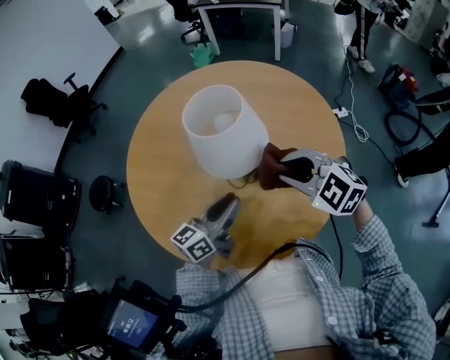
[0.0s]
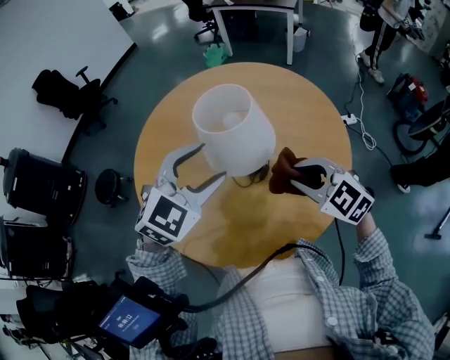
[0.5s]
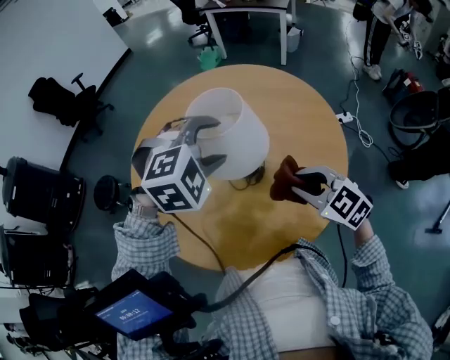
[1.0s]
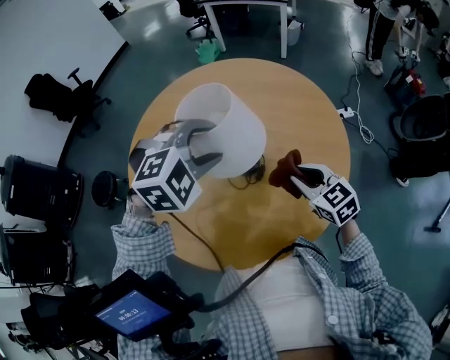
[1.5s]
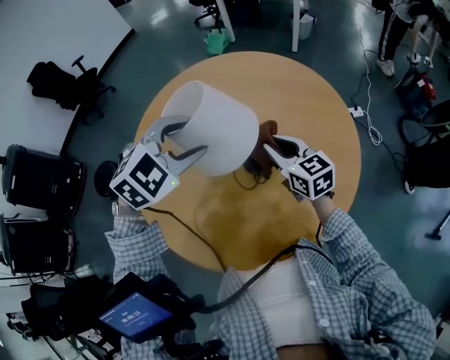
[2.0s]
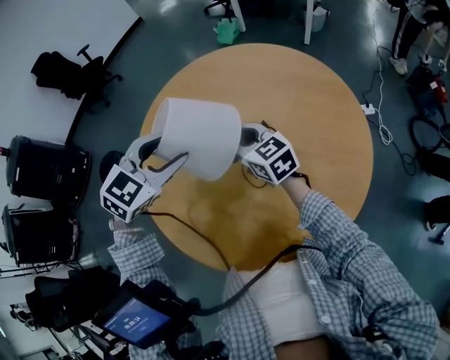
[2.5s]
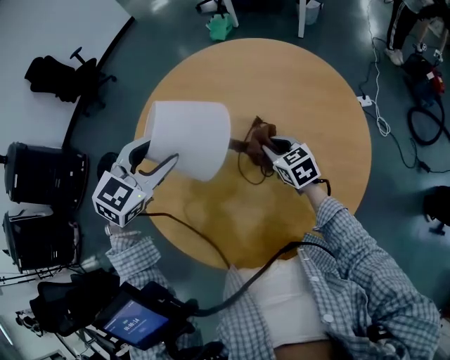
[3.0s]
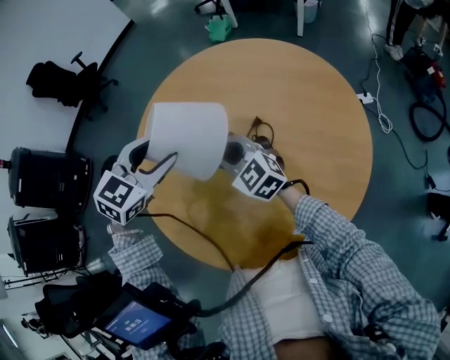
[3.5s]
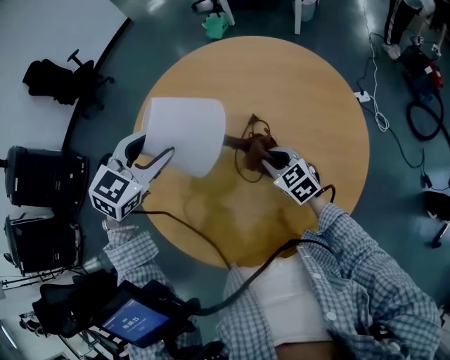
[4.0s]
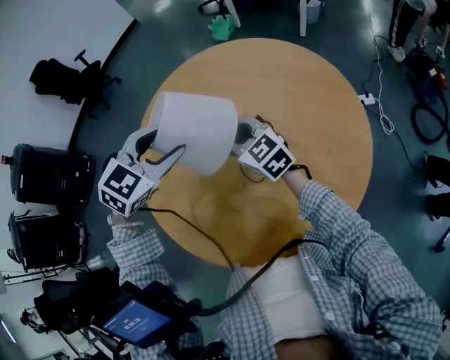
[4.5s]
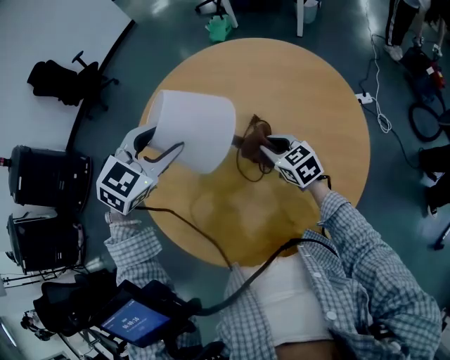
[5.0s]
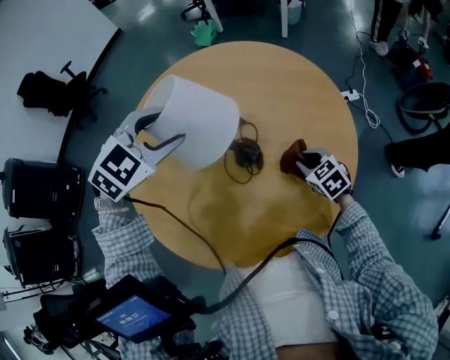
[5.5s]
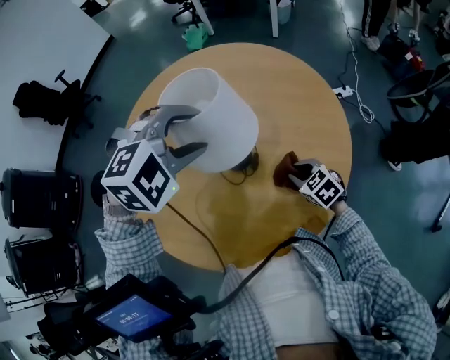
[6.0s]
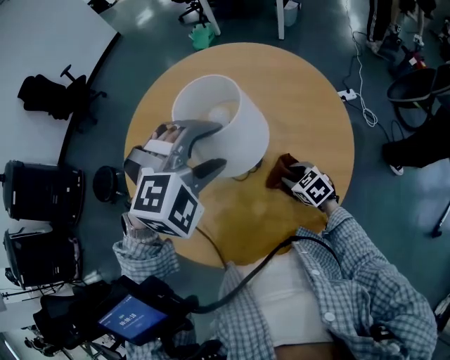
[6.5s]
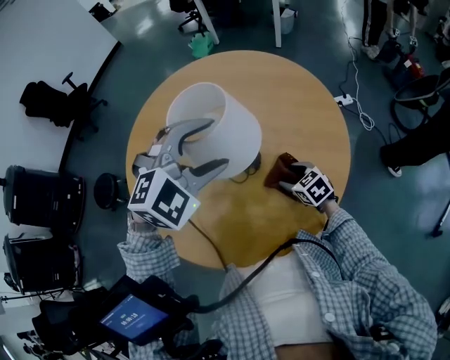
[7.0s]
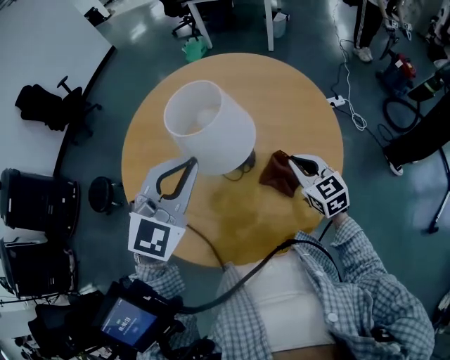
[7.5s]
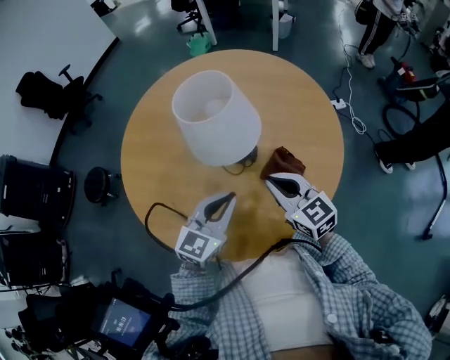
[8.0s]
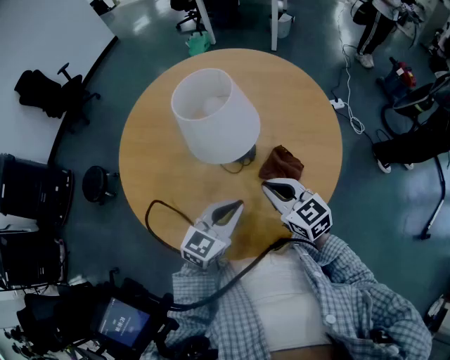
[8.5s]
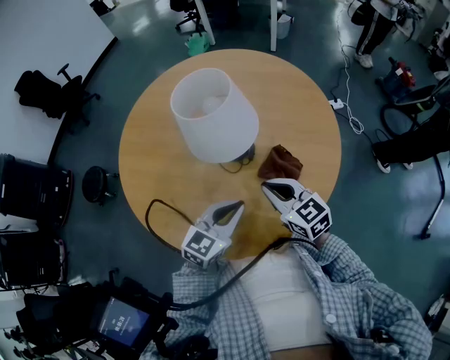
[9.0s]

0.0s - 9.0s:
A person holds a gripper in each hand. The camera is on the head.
0.0s - 2.0s: The right gripper travels forward and downward by about 15 cm, and twists approximately 40 degrees clockwise, seen from behind; the left gripper is displaced forward and upward by roughly 20 cm, twists roughly 70 degrees clockwise, seen from behind, and opens.
2.0s - 4.5s: The right gripper goes left and right, roughly 15 cm each way, reversing 4 times, and rotates roughly 20 degrees, while the left gripper moves to the left, some 5 cm, and turns by some 20 degrees.
4.5s - 7.0s: The left gripper goes some 15 cm to the right and backward, and turns by approximately 40 degrees; the right gripper goes approximately 30 cm to the right, downward and backward, tilts its fingers approximately 30 degrees downward, and opens its fingers.
7.0s - 9.0s: The left gripper travels downward and backward by approximately 20 cm, rotates around the line of its fingers by roughly 50 degrees, counterclockwise from behind, and closes its fingers; the right gripper heads upward, backward and to the left, covering approximately 20 cm, swivels some 30 degrees, and closes its fingers.

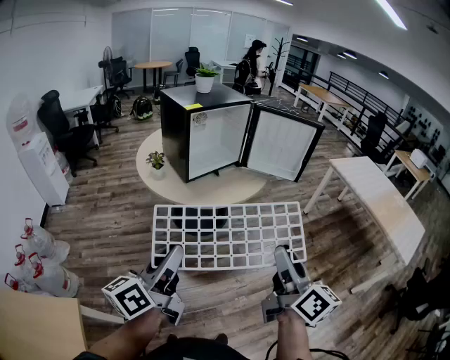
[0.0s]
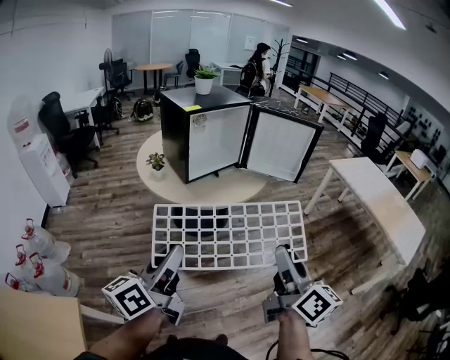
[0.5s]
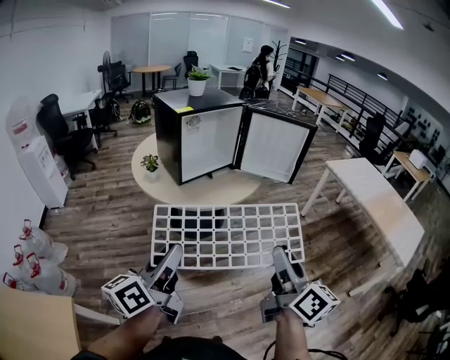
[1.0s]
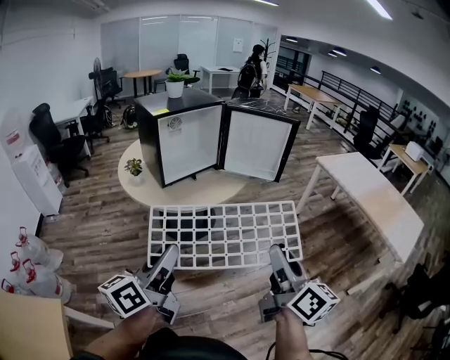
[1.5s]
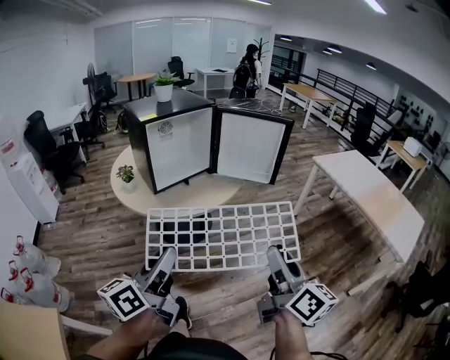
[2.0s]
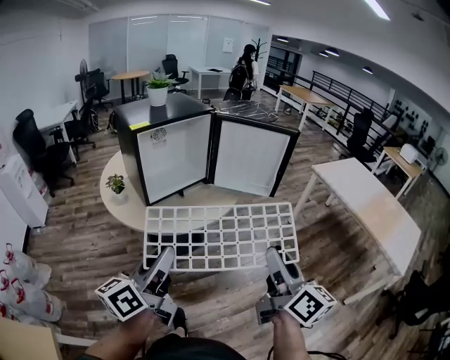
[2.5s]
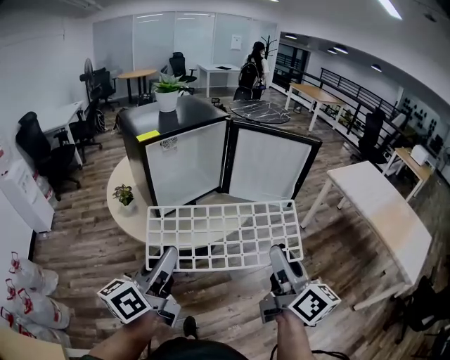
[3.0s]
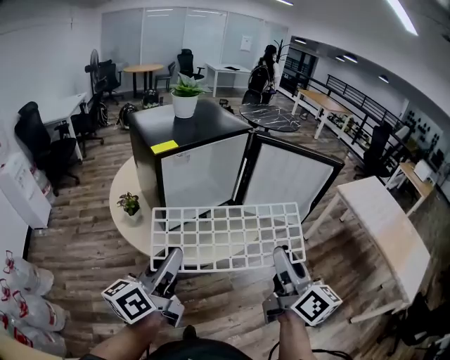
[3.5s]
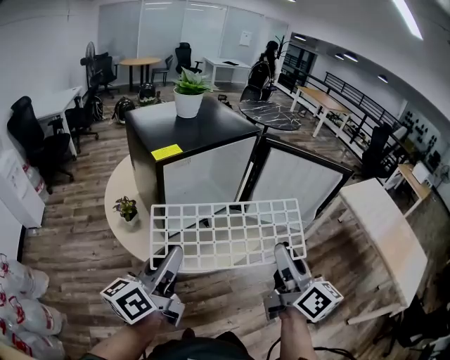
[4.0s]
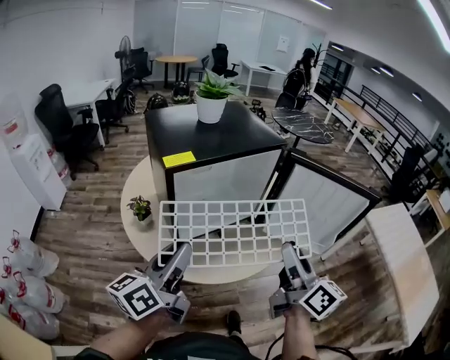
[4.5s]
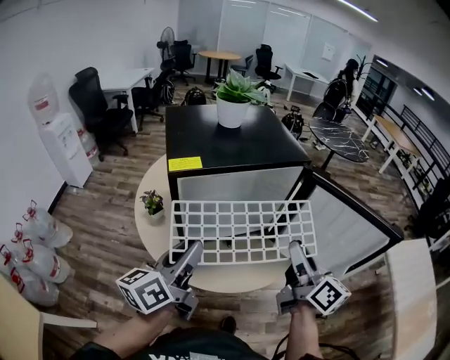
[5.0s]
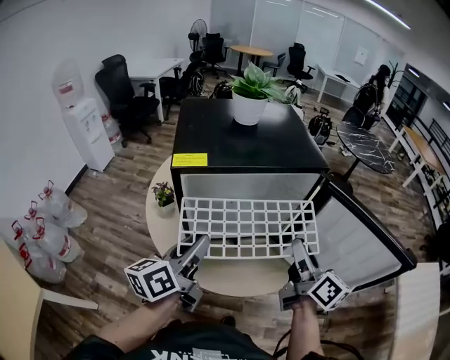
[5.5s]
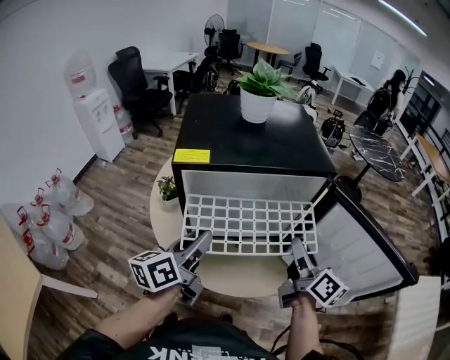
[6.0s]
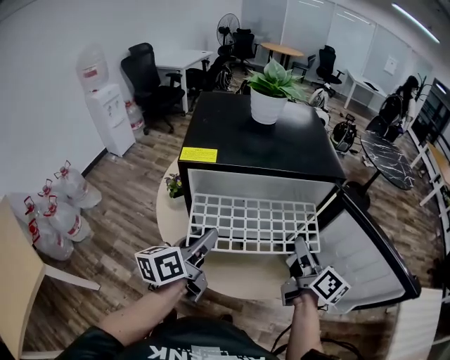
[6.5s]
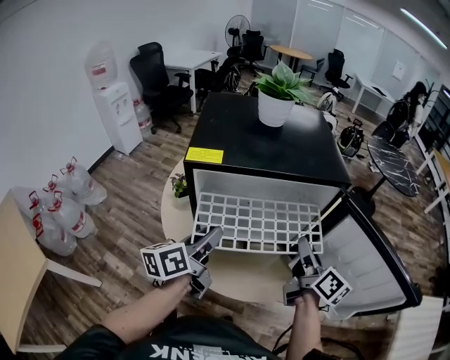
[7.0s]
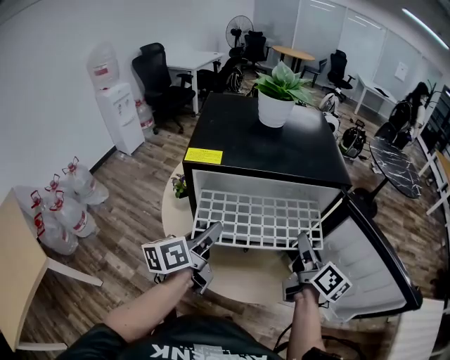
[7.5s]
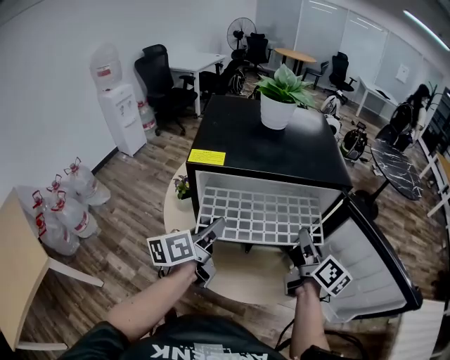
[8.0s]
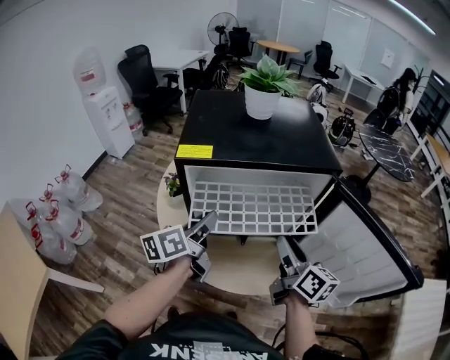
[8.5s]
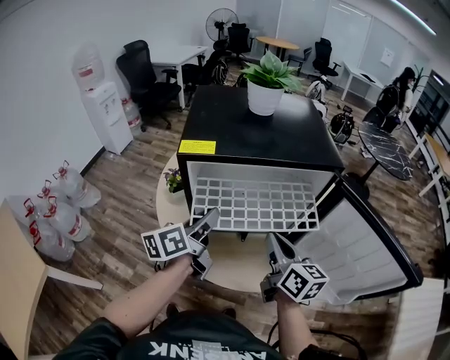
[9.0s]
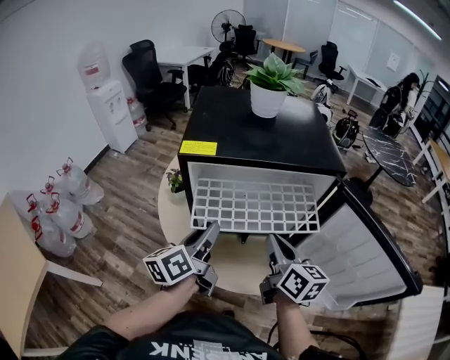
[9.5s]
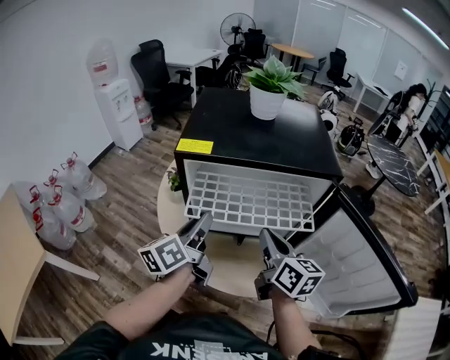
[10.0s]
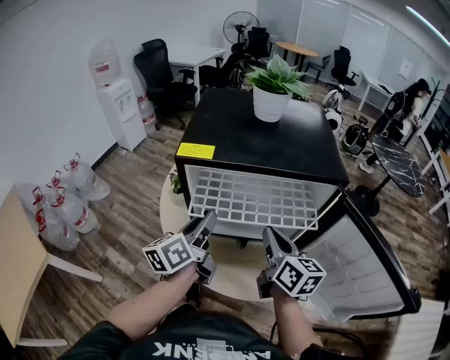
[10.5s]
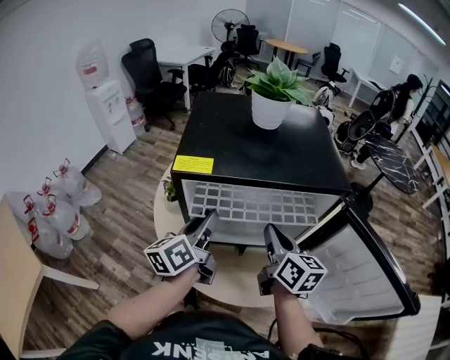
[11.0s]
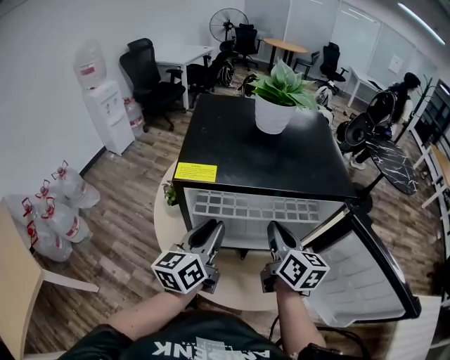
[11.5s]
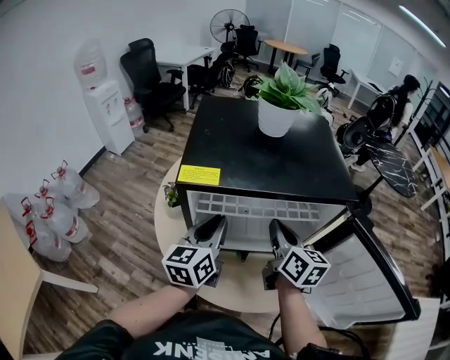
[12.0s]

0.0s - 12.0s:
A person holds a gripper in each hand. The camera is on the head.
0.0s - 2.0s: Both grippers move to the right, approximately 15 cm.
2.0s - 4.0s: Both grippers move forward and to the left, about 40 cm.
4.0s - 6.0s: The left gripper moves some 20 cm, and rotates approximately 30 degrees; the right gripper moves approximately 30 cm, and swivels approximately 30 degrees.
6.0s - 8.0s: The left gripper changes place by about 5 cm; the right gripper travels forward by roughly 5 cm.
8.0s - 10.0s: The right gripper shifts approximately 10 cm to the left, and closes its fingers.
10.0s - 12.0s: Both grippers move forward, roughly 10 cm. The left gripper turns by roughly 30 degrees.

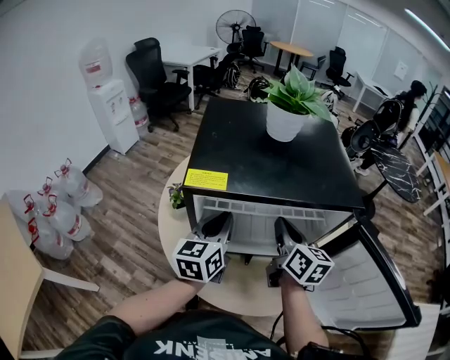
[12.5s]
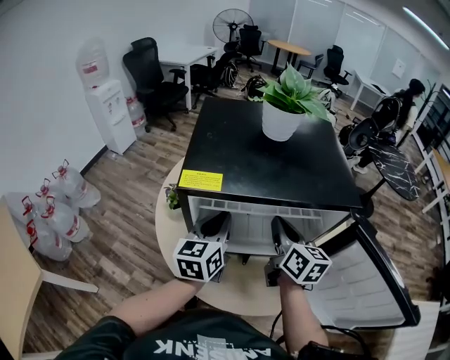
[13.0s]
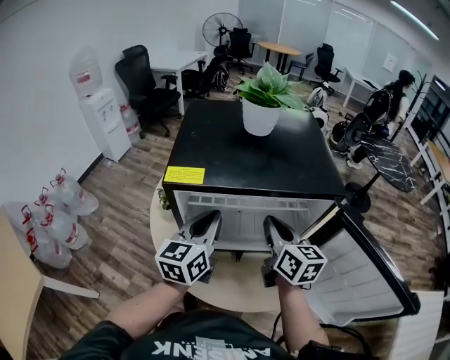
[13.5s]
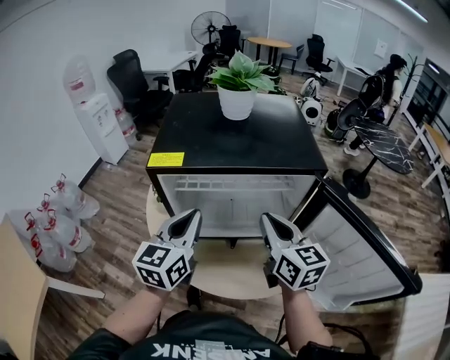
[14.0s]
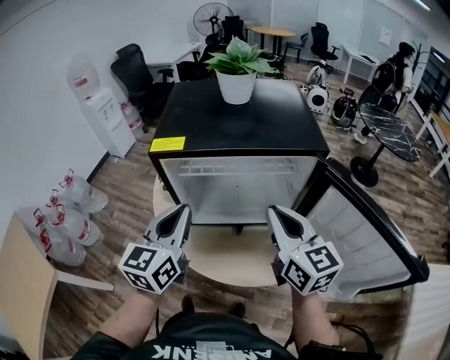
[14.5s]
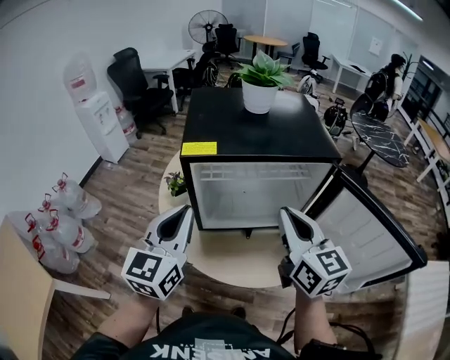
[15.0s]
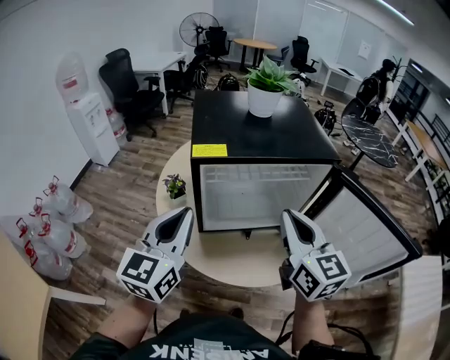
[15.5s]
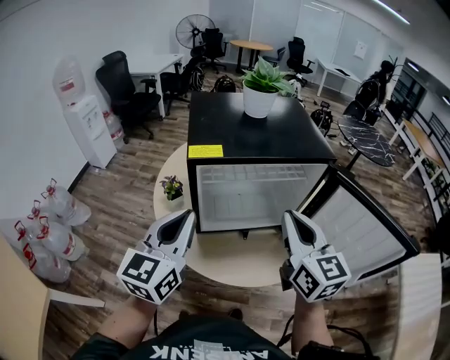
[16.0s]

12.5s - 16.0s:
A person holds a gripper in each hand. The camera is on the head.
12.5s - 14.5s: The grippers both shift backward and upward by about 15 cm. The right gripper rotates roughly 20 degrees.
14.5s - 16.0s: The grippers both shift to the left by approximately 5 cm.

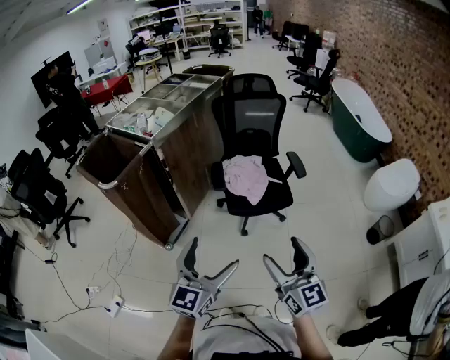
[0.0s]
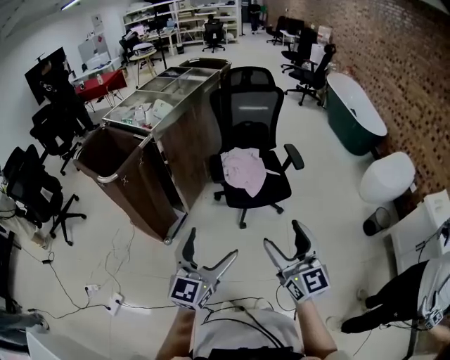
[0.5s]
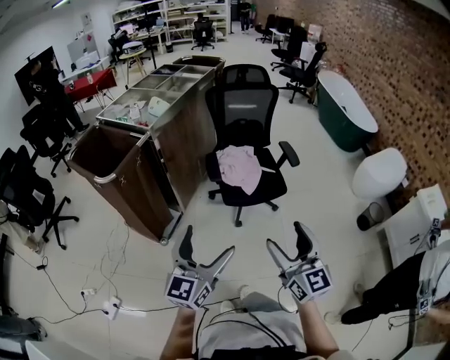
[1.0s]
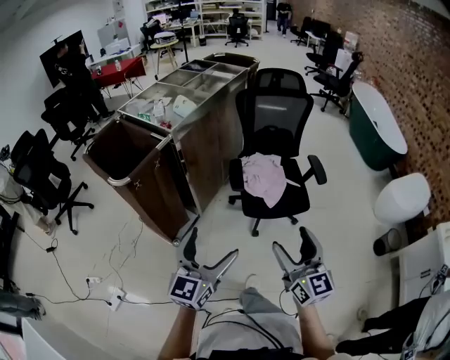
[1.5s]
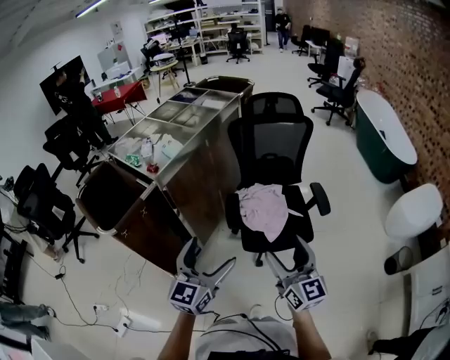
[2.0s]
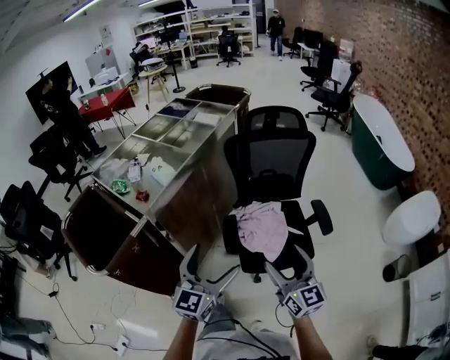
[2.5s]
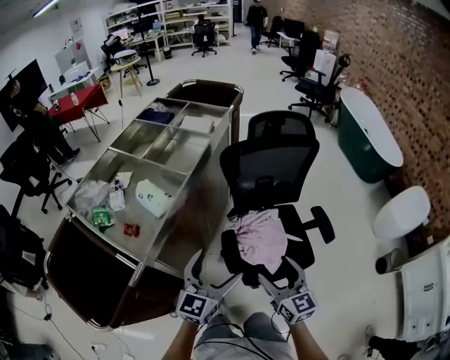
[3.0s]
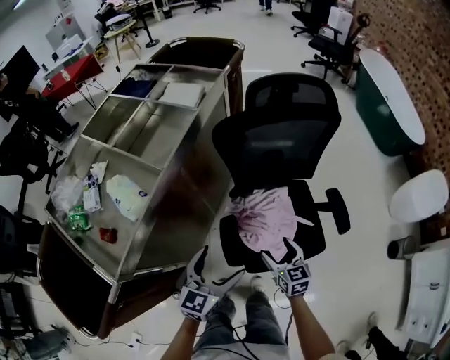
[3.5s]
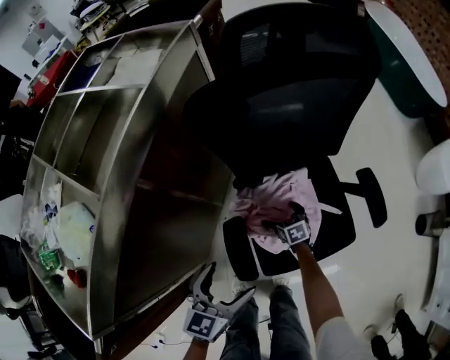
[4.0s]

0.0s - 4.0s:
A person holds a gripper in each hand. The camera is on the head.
0.0s - 2.0s: Both grippers move forward, some 25 cm.
2.0s - 4.0s: The left gripper goes roughly 50 cm forward and downward, and rotates roughly 30 degrees. The right gripper moves downward and forward, about 80 cm, points its fingers about 60 degrees further downward, and opens.
